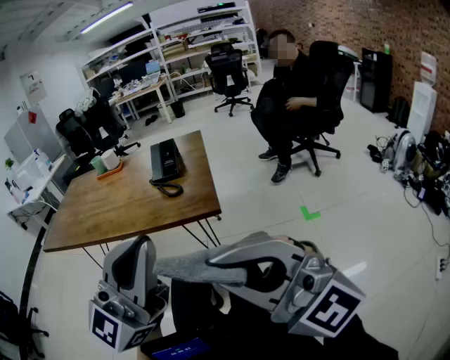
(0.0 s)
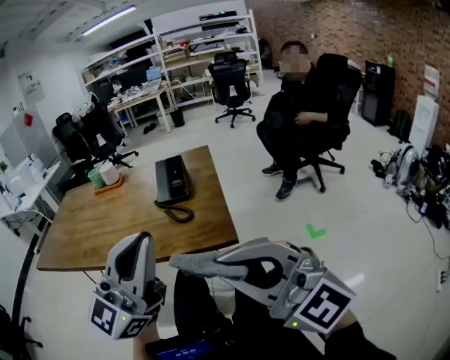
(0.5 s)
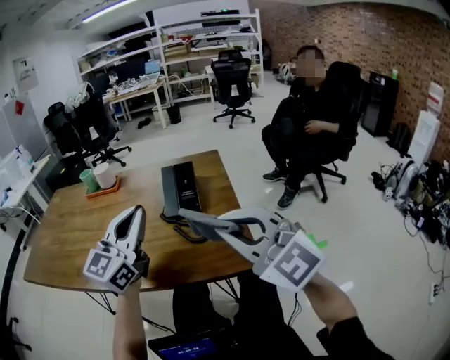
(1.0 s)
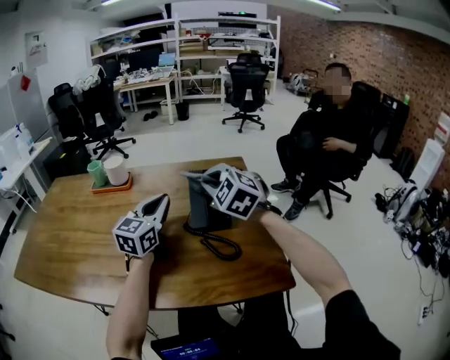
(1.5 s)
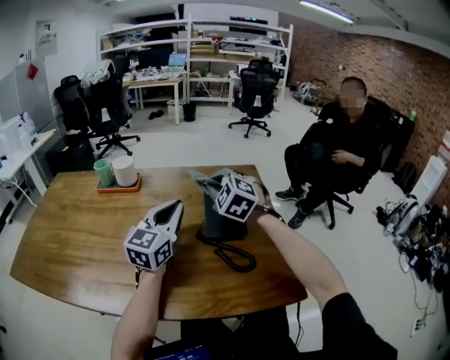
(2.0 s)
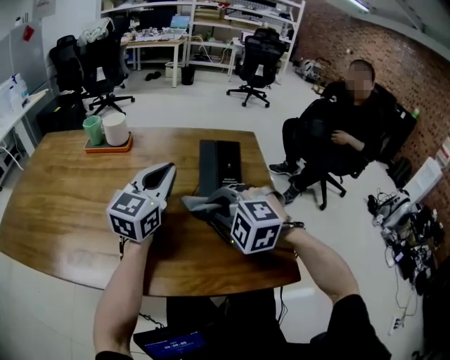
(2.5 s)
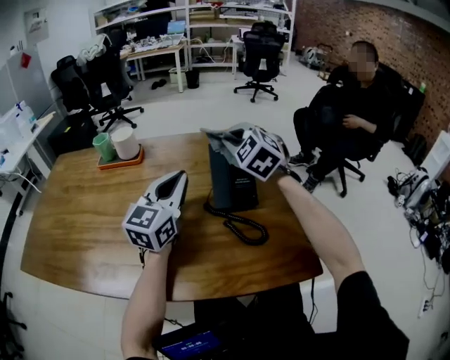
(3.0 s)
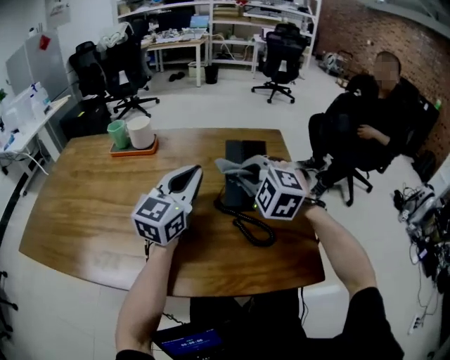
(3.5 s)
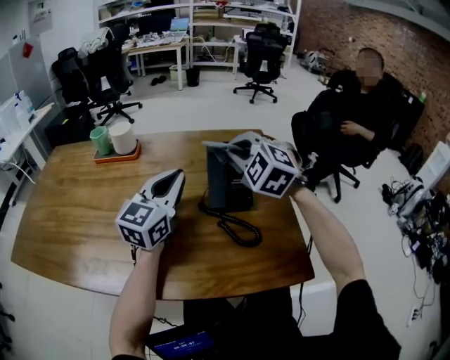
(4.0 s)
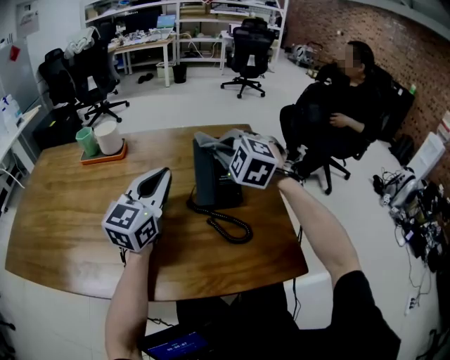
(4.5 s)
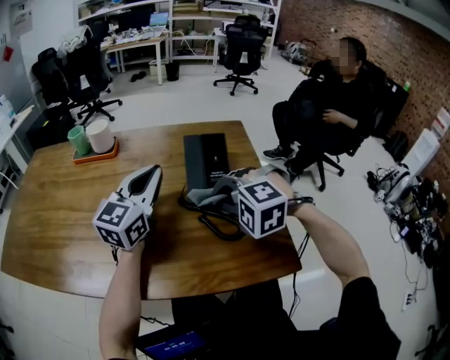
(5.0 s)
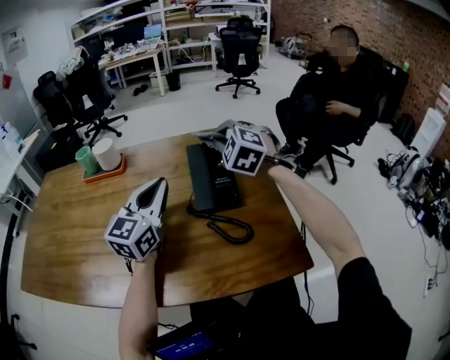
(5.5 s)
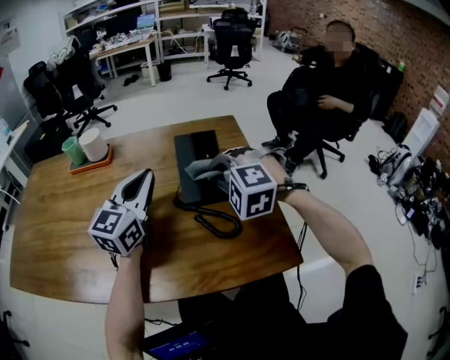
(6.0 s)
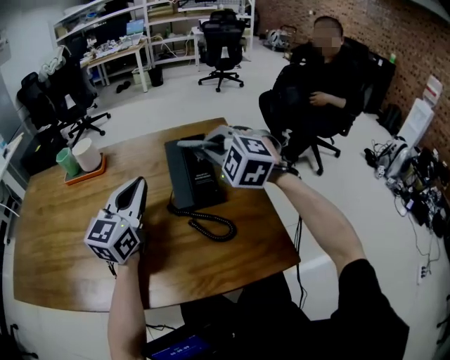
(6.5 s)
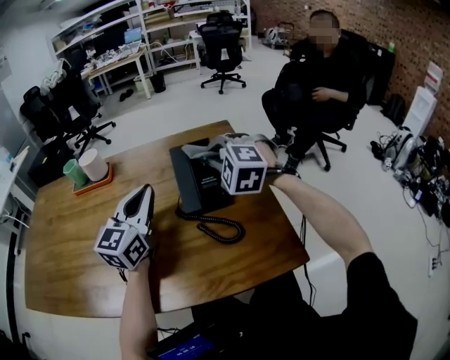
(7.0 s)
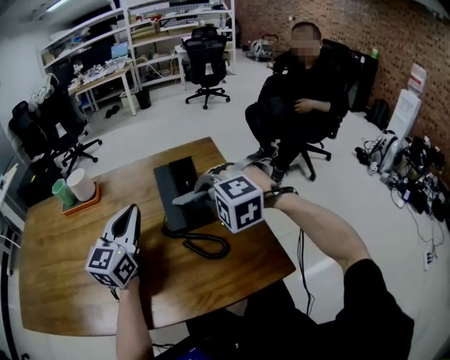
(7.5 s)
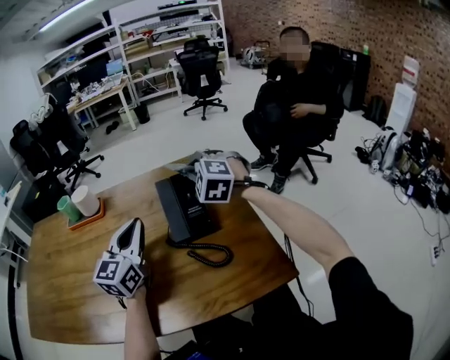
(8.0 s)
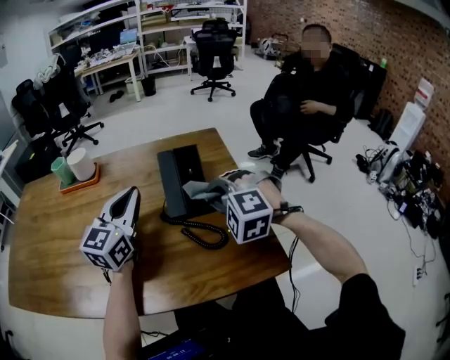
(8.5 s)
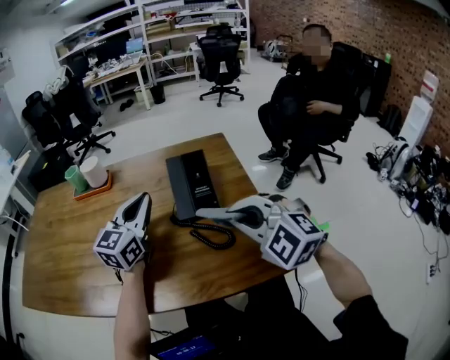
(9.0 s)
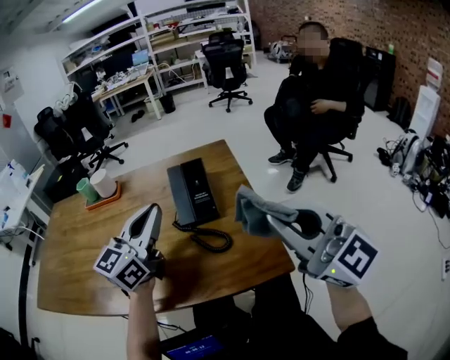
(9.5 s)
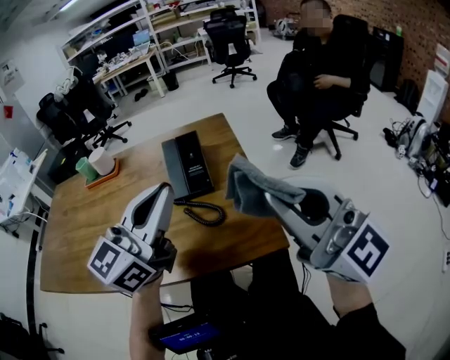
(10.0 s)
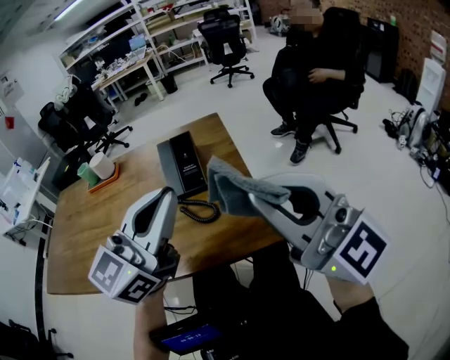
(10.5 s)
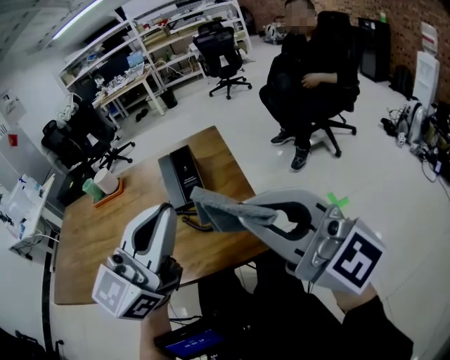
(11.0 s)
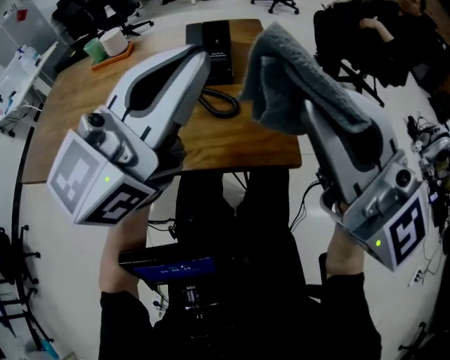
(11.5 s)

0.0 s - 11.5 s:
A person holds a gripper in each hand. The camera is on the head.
0.0 s - 2.0 s: The two grippers travel together, forward, about 60 cm. The right gripper tips its fingers downward by approximately 50 degrees. Meanwhile the left gripper rotates about 40 degrees.
2.0 s - 4.0 s: The right gripper moves forward and backward over approximately 20 cm, changing direction 3 times.
4.0 s - 6.0 s: The right gripper goes forward and backward, some 20 cm each way, reversing 2 times, and swivels about 20 degrees.
7.5 s - 9.5 s: The right gripper travels backward, upward and to the right by about 30 cm, and points its fingers about 60 degrees further upward; the left gripper goes some 10 cm backward, upward and to the right.
9.5 s - 11.5 s: The left gripper heads backward, to the right and upward, covering some 20 cm. The right gripper is displaced backward by roughly 10 cm.

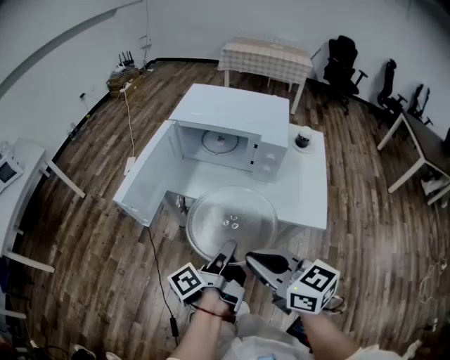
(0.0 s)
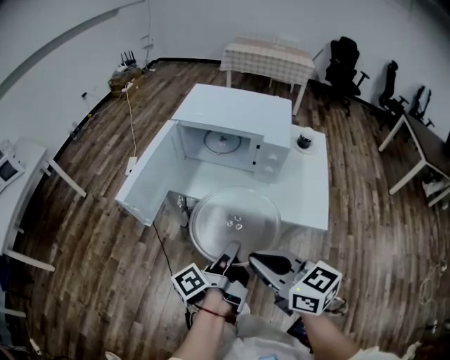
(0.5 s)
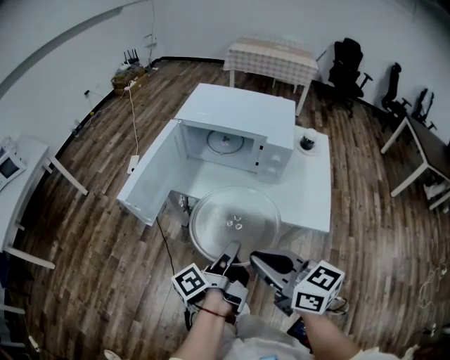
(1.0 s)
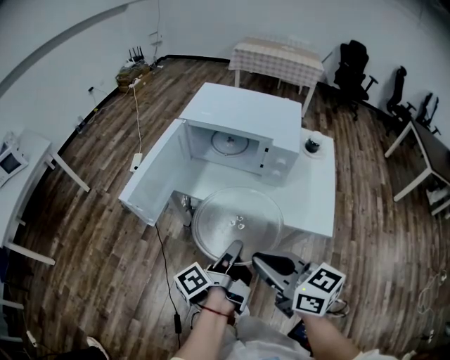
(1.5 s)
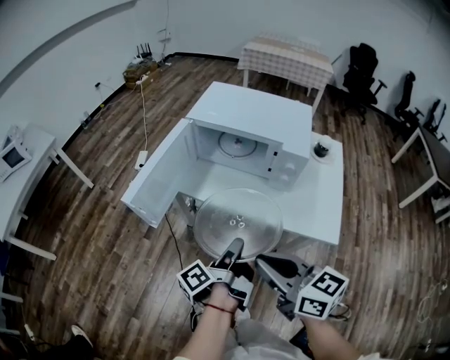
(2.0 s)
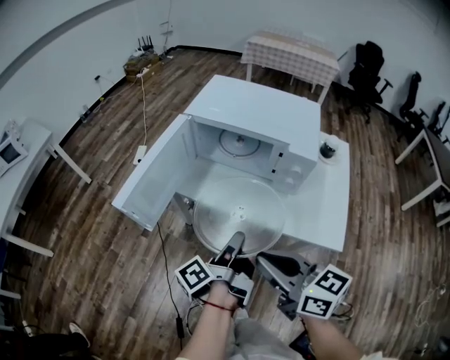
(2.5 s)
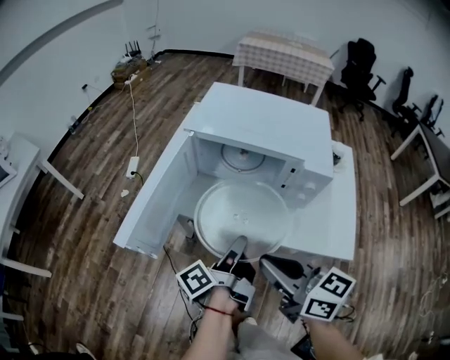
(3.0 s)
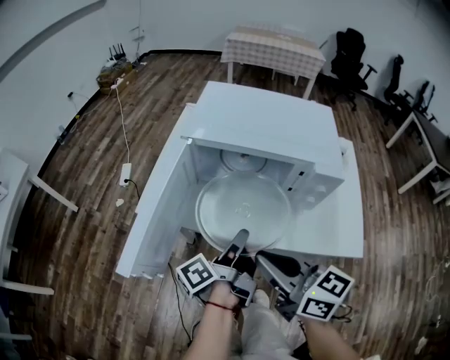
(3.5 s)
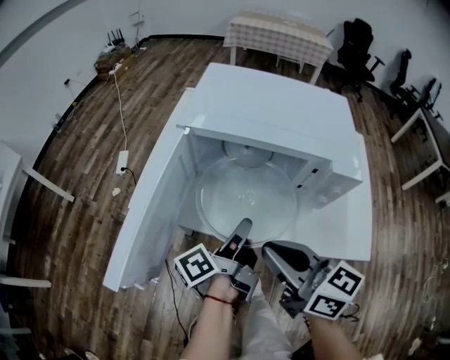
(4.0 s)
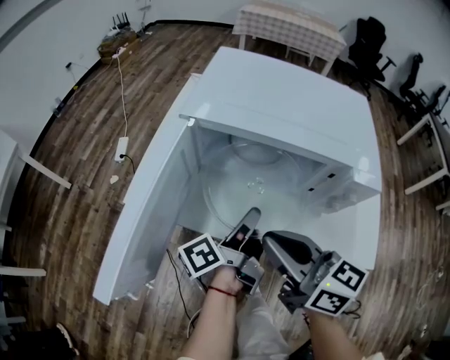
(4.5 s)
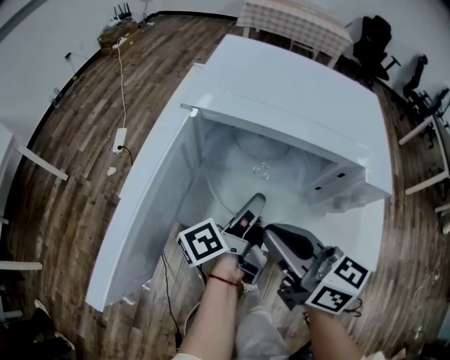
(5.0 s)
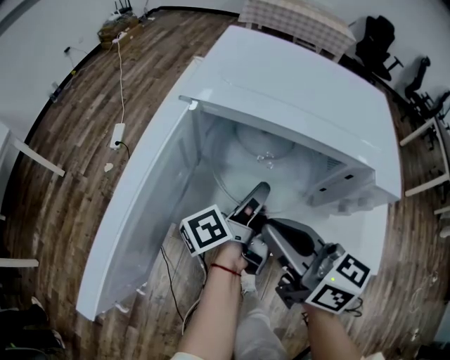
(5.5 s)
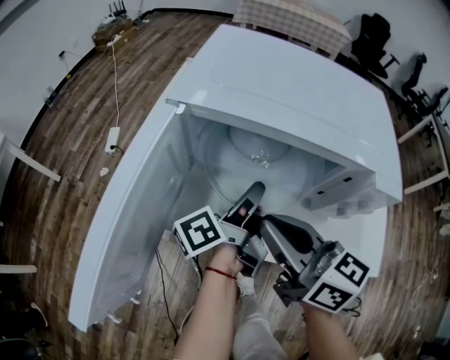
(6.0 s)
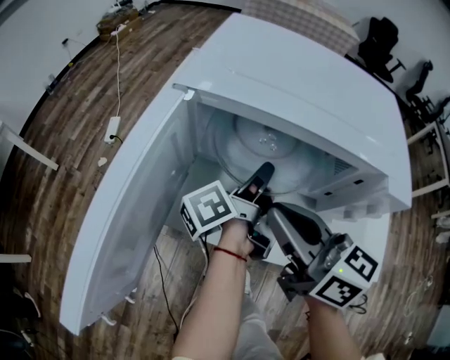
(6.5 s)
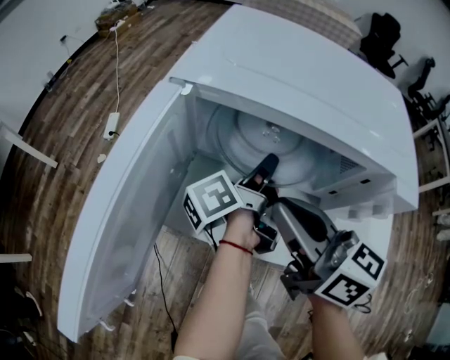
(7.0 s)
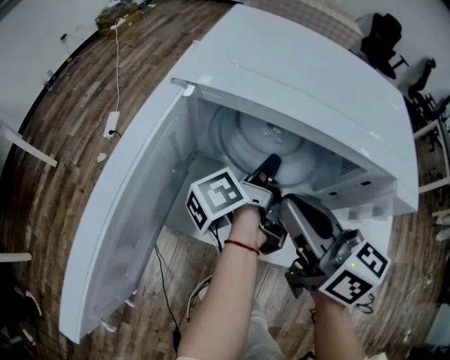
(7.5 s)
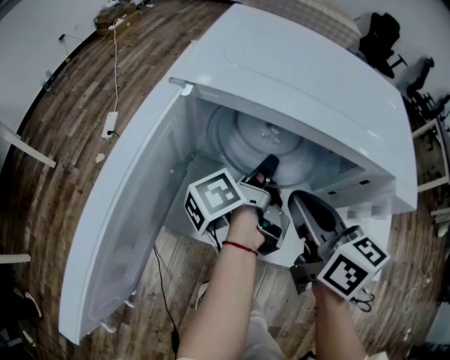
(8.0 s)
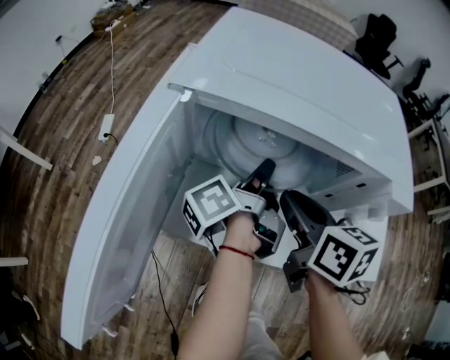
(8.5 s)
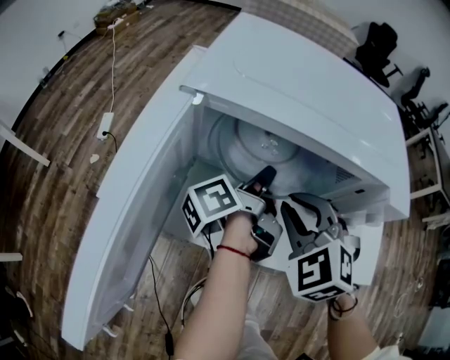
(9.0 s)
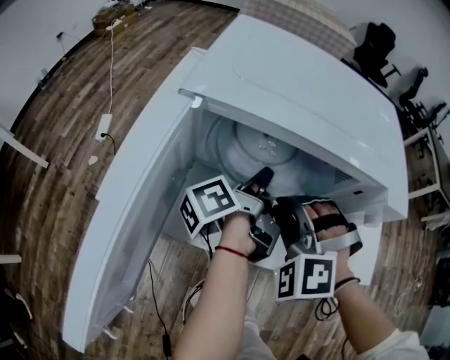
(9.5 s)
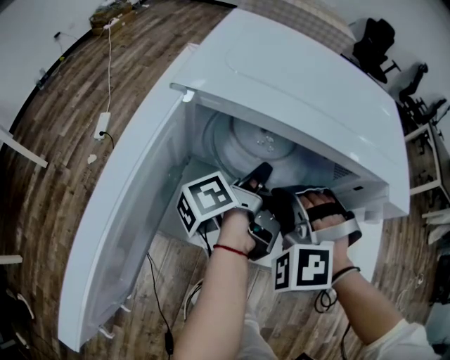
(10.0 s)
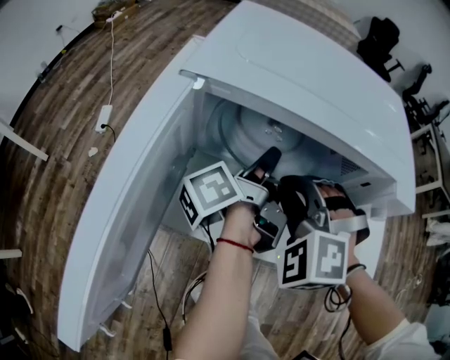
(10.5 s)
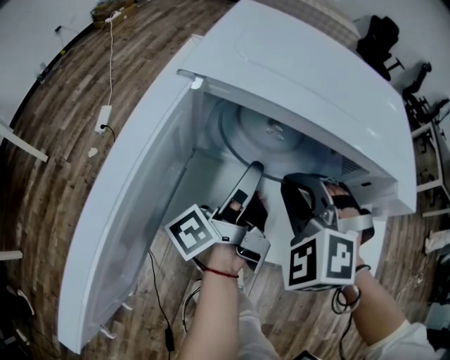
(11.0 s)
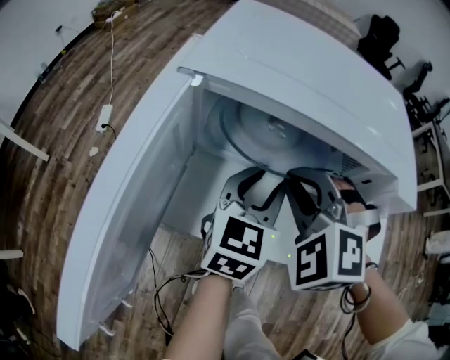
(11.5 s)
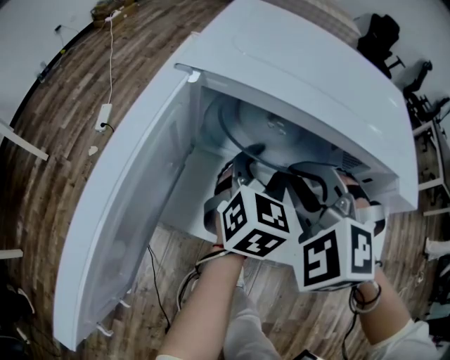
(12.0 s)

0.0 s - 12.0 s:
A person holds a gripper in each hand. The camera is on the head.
0.0 s - 2.0 s: The left gripper shifts by some 5 cm.
2.0 s - 4.0 s: Both grippers move forward, roughly 20 cm.
4.0 s - 6.0 s: The grippers both shift forward by about 10 cm.
6.0 s - 8.0 s: The left gripper moves forward, roughly 5 cm, while the right gripper heads to the right, covering approximately 5 cm.
8.0 s - 10.0 s: The right gripper ends up some 5 cm from where it was, and twists some 100 degrees counterclockwise, seen from behind.
10.0 s - 12.0 s: The right gripper travels upward by roughly 5 cm; the left gripper rolls clockwise, seen from behind, by some 100 degrees, and opens.

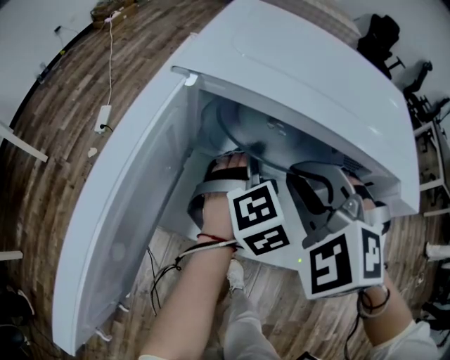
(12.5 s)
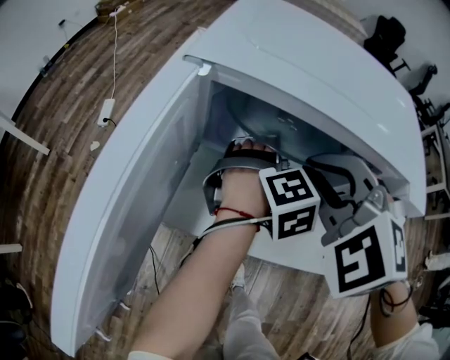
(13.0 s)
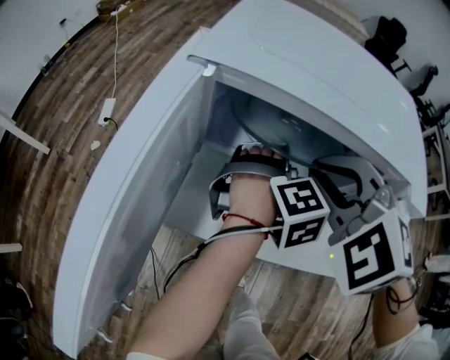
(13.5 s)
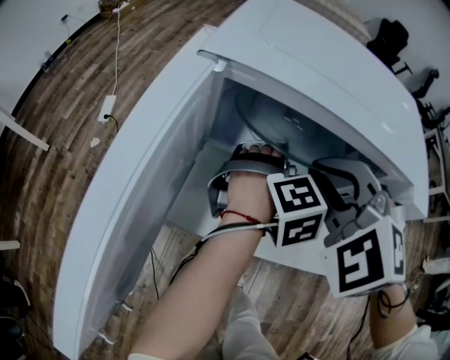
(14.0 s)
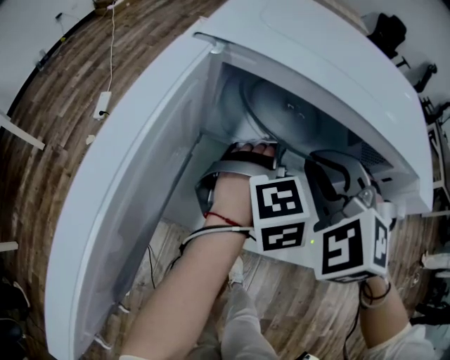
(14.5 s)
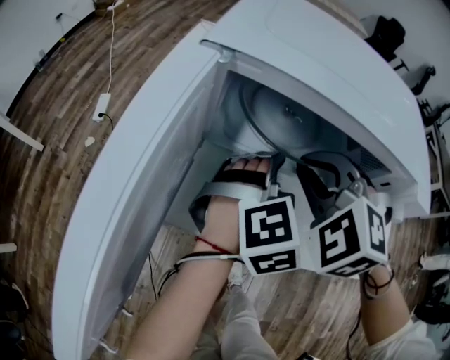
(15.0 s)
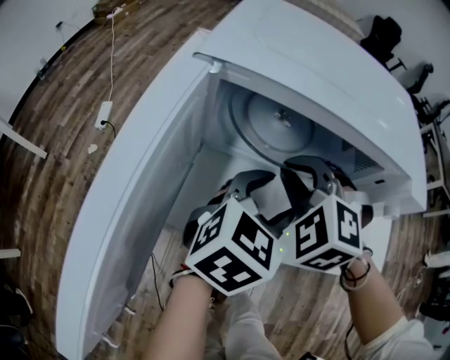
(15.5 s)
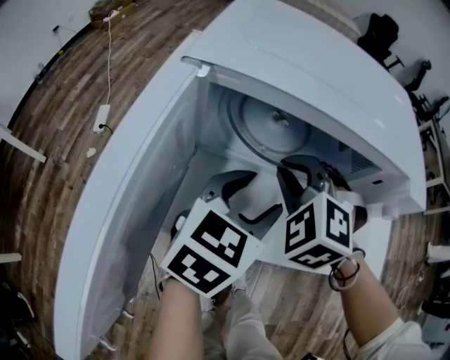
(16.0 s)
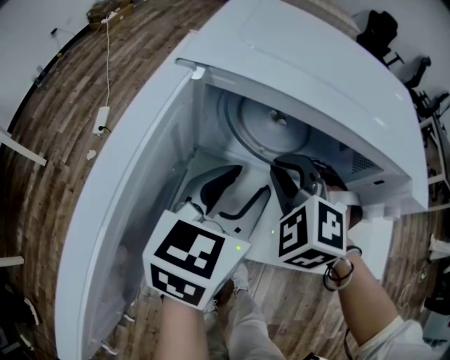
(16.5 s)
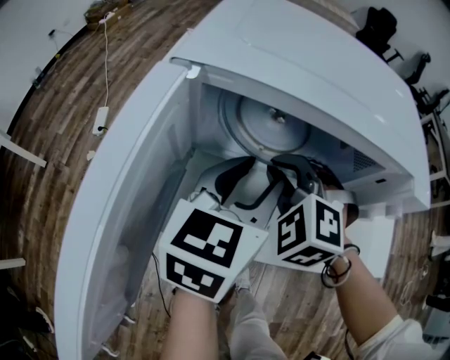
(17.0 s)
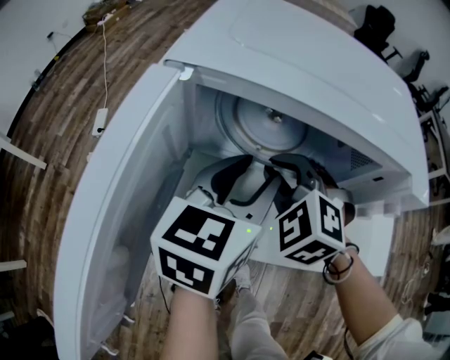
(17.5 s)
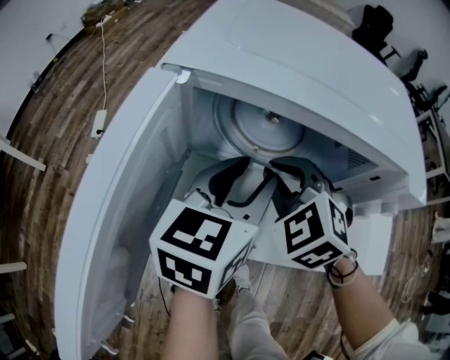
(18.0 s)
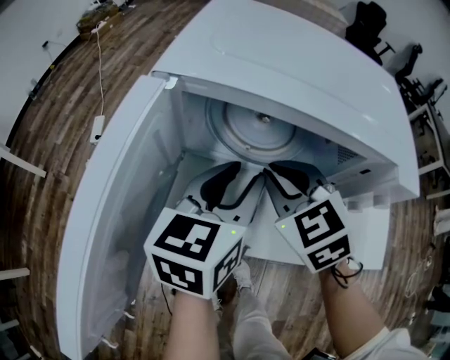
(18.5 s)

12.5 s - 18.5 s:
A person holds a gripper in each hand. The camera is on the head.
14.5 s - 16.5 s: The left gripper moves upward and to the left, about 15 cm, rotates around the line of its fingers by about 50 degrees, counterclockwise from behind, and closes. Meanwhile the right gripper moves downward, approximately 5 cm.
16.5 s - 18.5 s: The right gripper rotates approximately 40 degrees.
